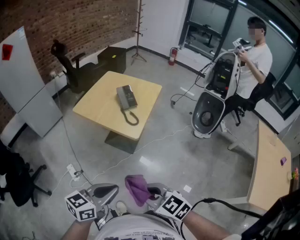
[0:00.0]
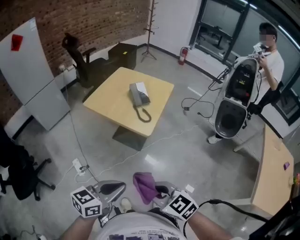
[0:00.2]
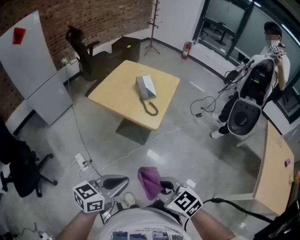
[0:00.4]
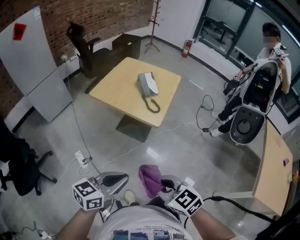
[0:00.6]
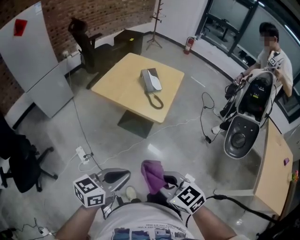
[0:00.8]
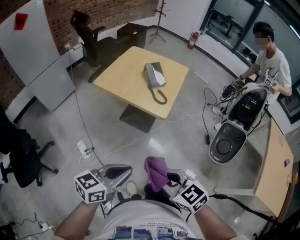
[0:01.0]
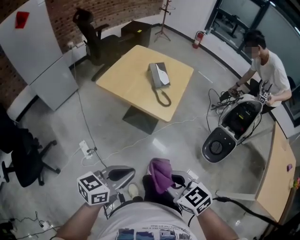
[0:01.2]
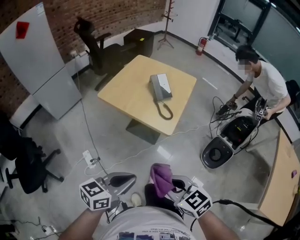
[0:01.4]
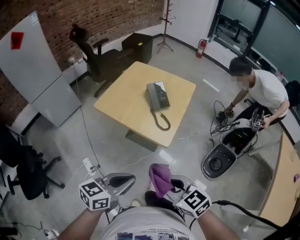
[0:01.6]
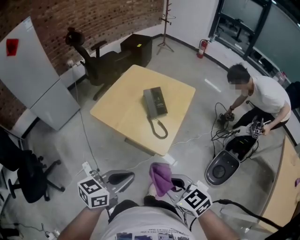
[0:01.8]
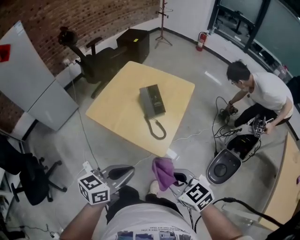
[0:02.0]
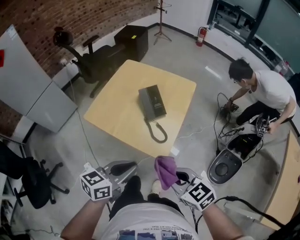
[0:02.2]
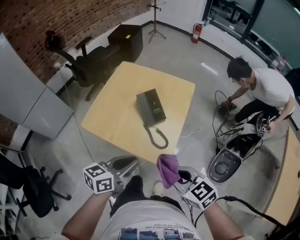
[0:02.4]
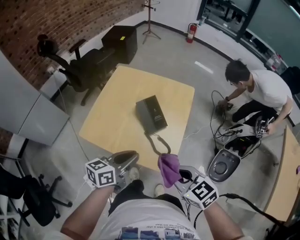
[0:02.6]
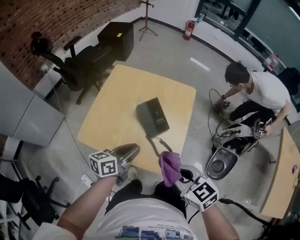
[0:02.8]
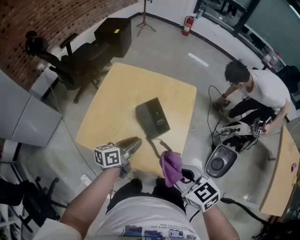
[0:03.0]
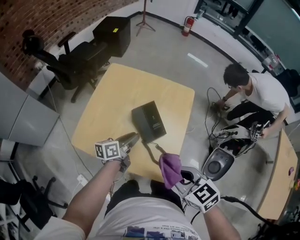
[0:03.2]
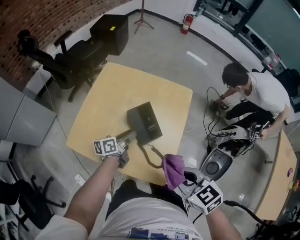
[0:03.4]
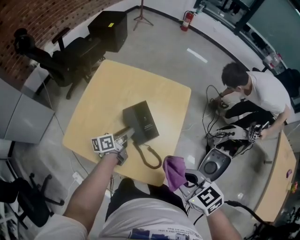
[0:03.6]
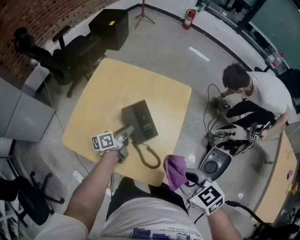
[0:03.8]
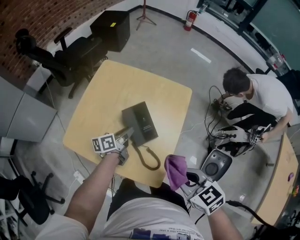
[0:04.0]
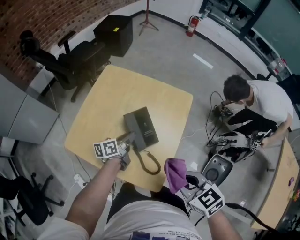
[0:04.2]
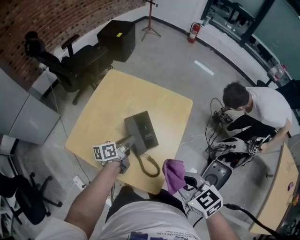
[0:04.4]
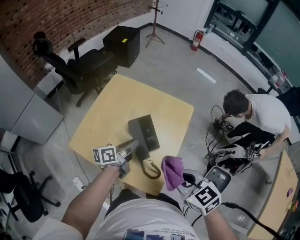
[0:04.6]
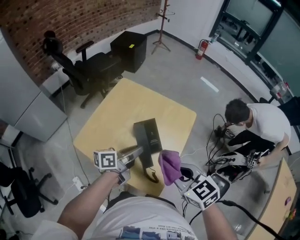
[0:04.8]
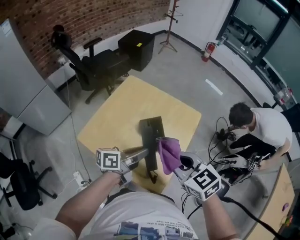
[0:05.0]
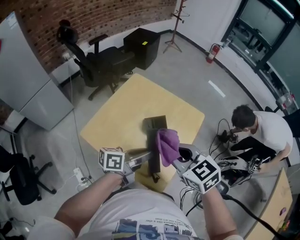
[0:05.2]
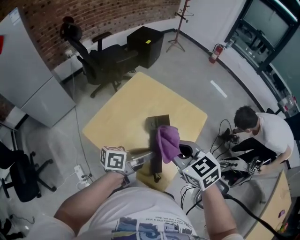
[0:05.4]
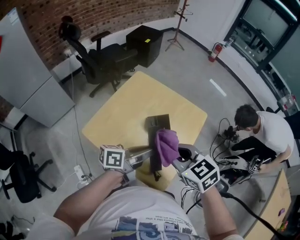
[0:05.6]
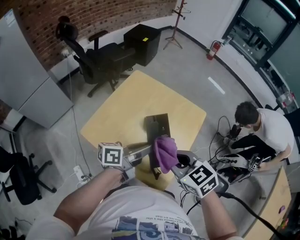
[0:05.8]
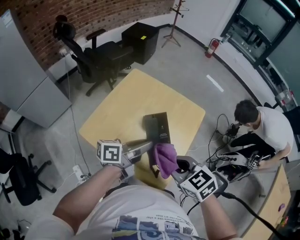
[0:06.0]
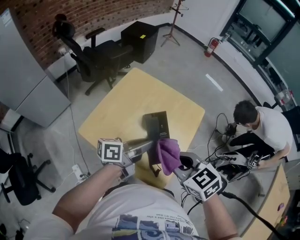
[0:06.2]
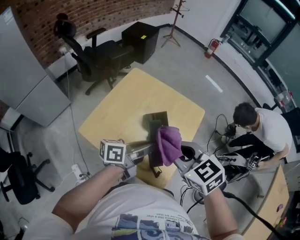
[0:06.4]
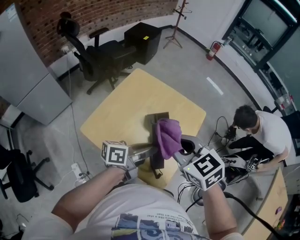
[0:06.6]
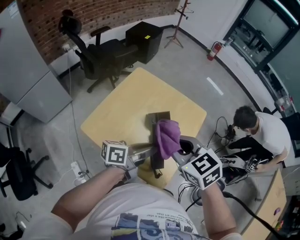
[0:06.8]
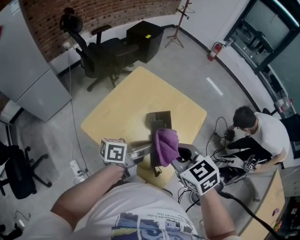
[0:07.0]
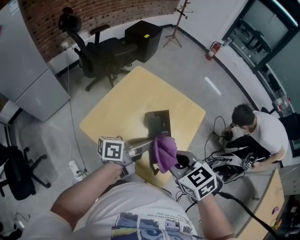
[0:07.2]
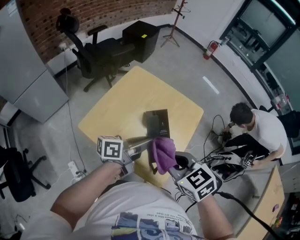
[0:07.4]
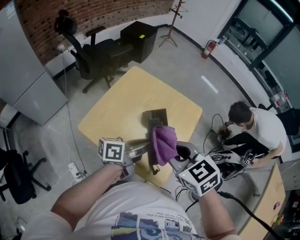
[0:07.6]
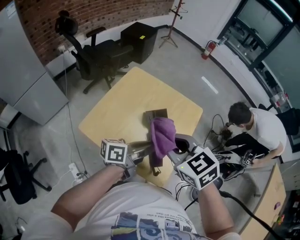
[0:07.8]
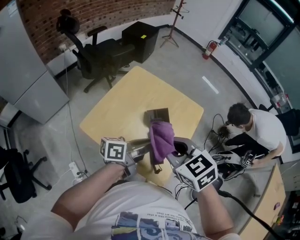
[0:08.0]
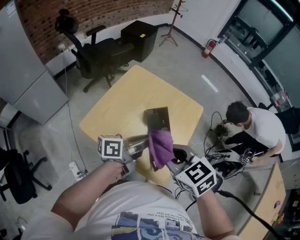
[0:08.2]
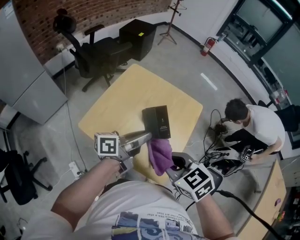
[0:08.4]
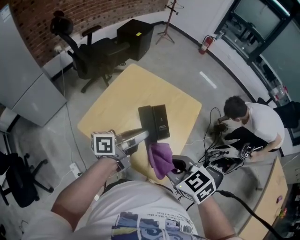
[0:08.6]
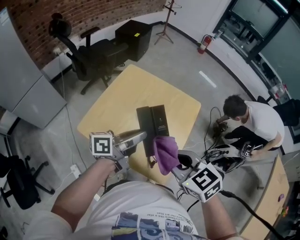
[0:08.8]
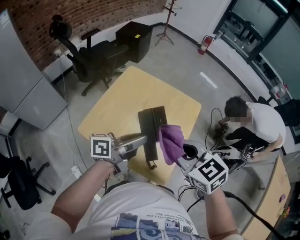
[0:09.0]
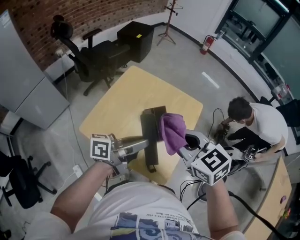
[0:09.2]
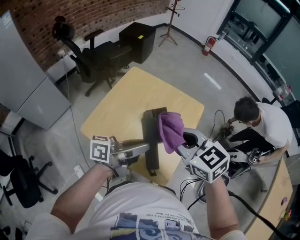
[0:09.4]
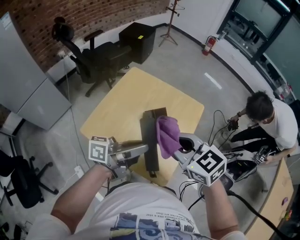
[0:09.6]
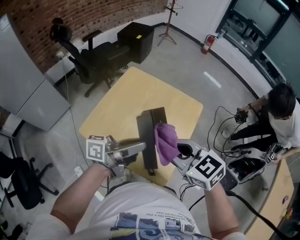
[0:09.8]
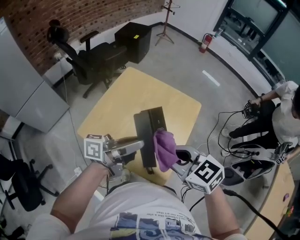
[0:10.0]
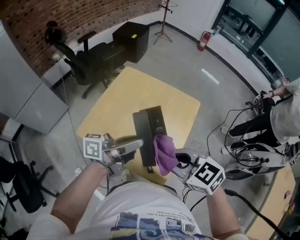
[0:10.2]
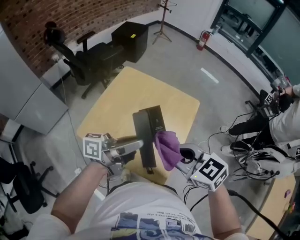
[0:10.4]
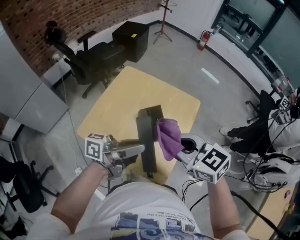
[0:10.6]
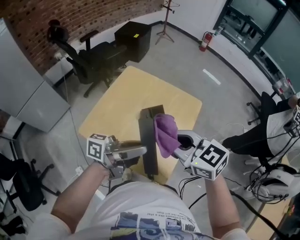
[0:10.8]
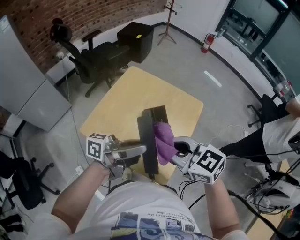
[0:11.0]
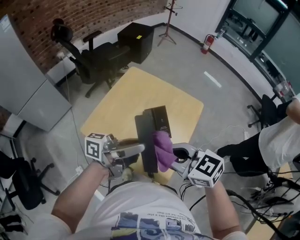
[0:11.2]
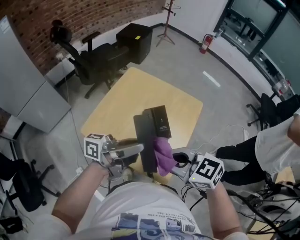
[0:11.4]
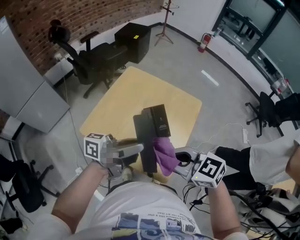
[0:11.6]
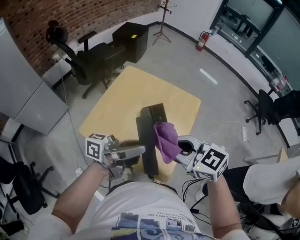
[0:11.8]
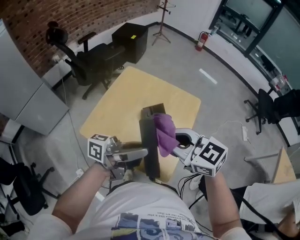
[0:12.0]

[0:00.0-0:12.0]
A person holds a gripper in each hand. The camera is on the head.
0:00.0 to 0:01.6: The left gripper shifts roughly 10 cm forward and to the left, while the right gripper shifts about 10 cm forward.
0:01.6 to 0:03.0: The right gripper moves forward, some 25 cm. Meanwhile the left gripper shifts some 35 cm forward, and swivels some 20 degrees.
0:03.0 to 0:04.4: The right gripper heads to the right, covering approximately 5 cm, while the left gripper is displaced forward by roughly 10 cm.
0:04.4 to 0:06.0: The right gripper heads to the left, covering roughly 5 cm, while the left gripper shifts about 15 cm upward and backward.
0:06.0 to 0:07.6: The right gripper goes up and down, about 5 cm each way, reversing 2 times.
0:07.6 to 0:09.0: The right gripper travels backward and back again, some 5 cm each way.
0:09.0 to 0:10.4: There are only small adjustments of the grippers.
0:10.4 to 0:12.0: The right gripper ends up approximately 5 cm from where it was.

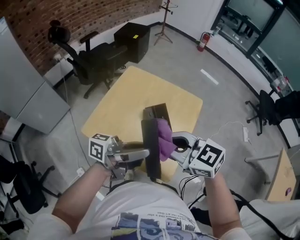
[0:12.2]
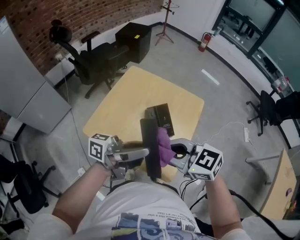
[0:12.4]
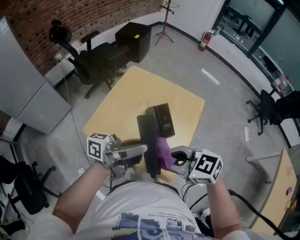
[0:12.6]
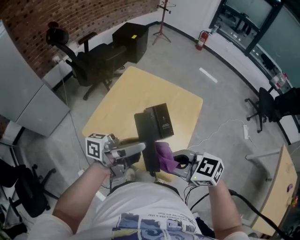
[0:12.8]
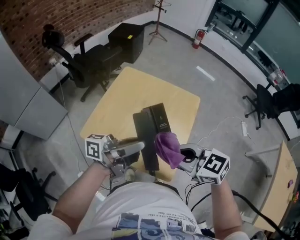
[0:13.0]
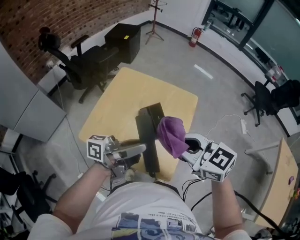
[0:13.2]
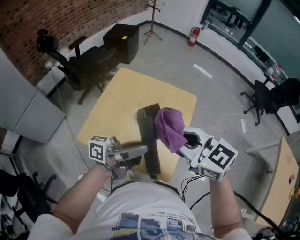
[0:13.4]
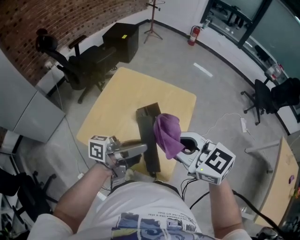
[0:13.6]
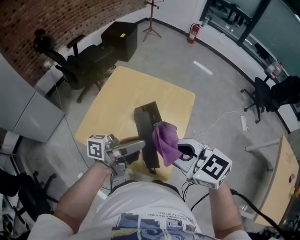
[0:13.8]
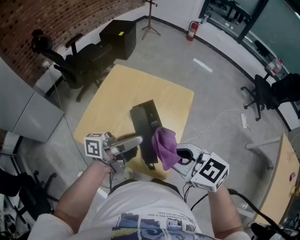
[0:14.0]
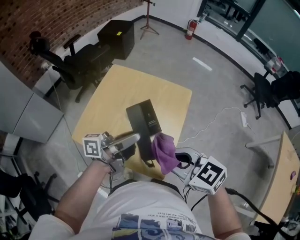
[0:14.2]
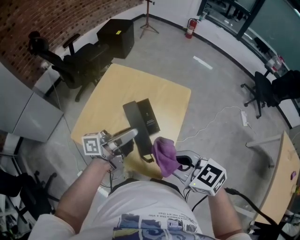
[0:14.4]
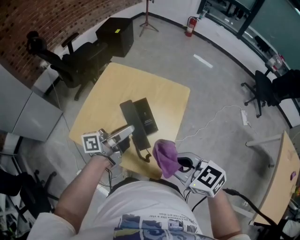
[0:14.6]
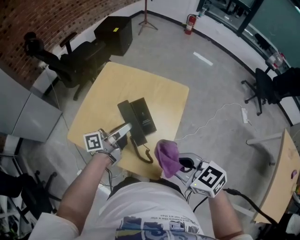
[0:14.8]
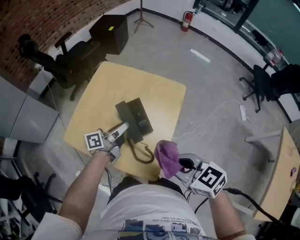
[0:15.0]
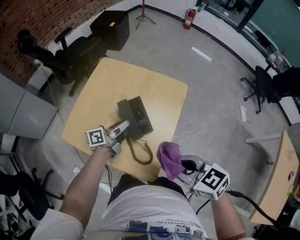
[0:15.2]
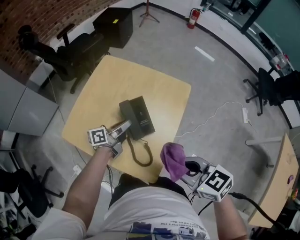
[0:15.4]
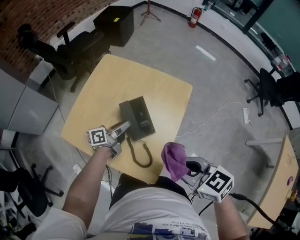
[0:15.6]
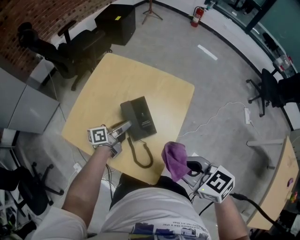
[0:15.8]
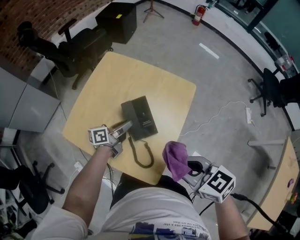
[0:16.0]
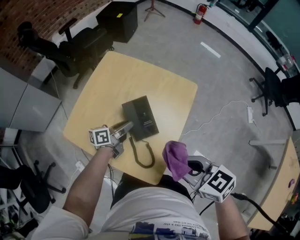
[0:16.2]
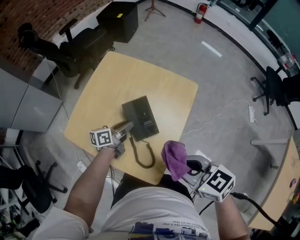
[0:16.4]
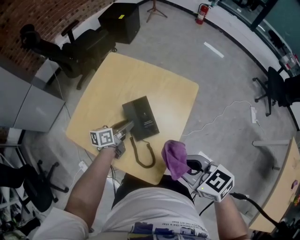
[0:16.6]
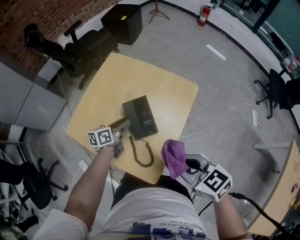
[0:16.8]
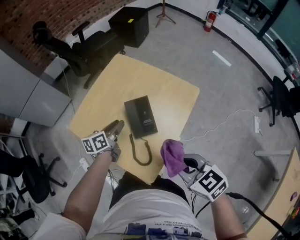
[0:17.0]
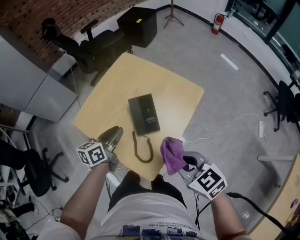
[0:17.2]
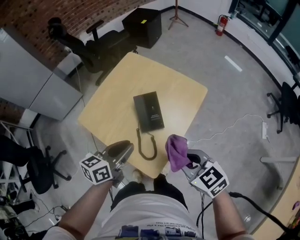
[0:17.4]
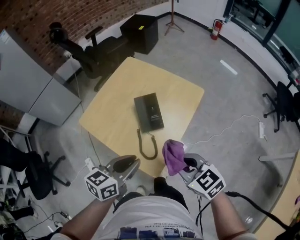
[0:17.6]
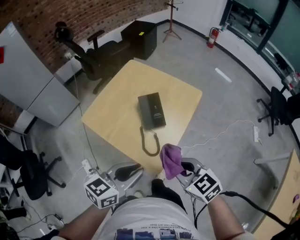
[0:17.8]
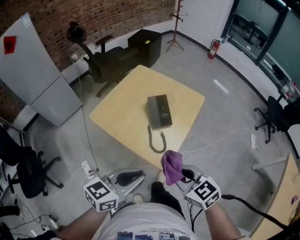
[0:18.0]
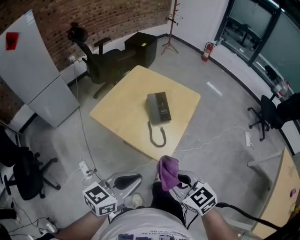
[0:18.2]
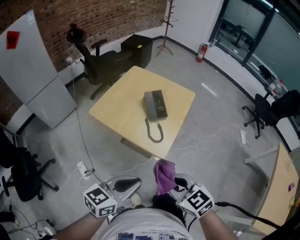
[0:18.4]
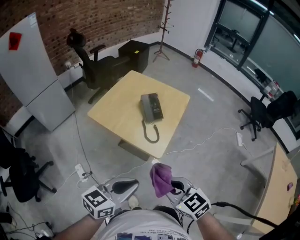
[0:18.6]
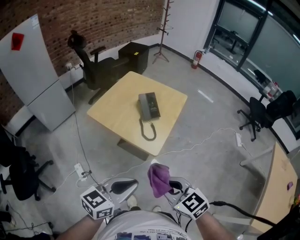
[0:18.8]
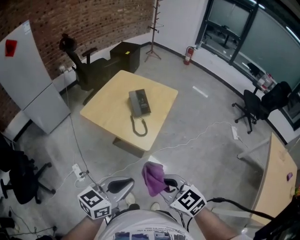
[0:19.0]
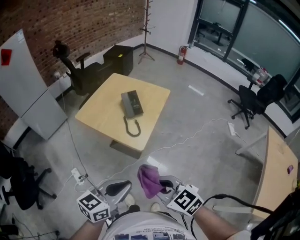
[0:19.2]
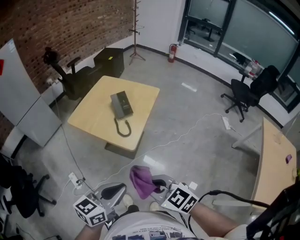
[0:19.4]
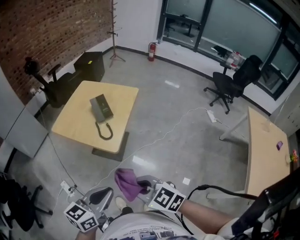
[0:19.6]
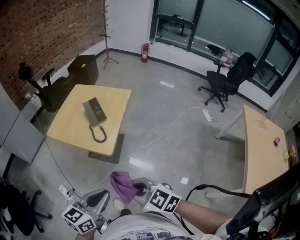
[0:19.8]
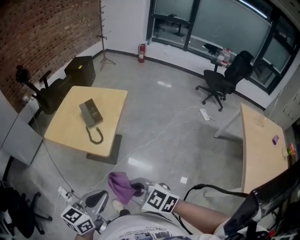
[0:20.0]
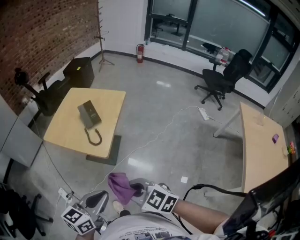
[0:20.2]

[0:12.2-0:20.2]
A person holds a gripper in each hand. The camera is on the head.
0:12.2 to 0:13.8: The right gripper travels downward and back again, roughly 5 cm each way. The left gripper changes place by about 5 cm.
0:13.8 to 0:15.4: The right gripper moves some 15 cm; the left gripper shifts some 20 cm downward, and swivels approximately 30 degrees.
0:15.4 to 0:17.0: The left gripper moves to the left, approximately 5 cm, and turns by some 30 degrees.
0:17.0 to 0:18.6: The left gripper is displaced backward and upward by approximately 40 cm, changes its angle by some 40 degrees, and closes up; the right gripper travels backward and to the left by roughly 25 cm.
0:18.6 to 0:20.2: The left gripper travels to the right and backward by approximately 10 cm. Meanwhile the right gripper travels backward and to the right by roughly 10 cm.

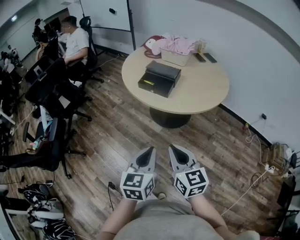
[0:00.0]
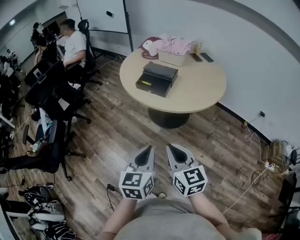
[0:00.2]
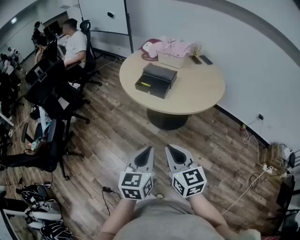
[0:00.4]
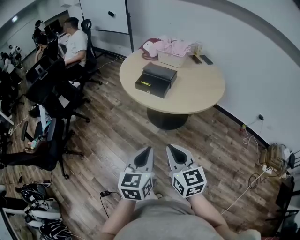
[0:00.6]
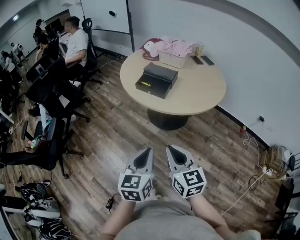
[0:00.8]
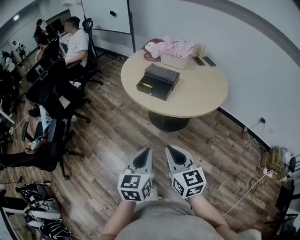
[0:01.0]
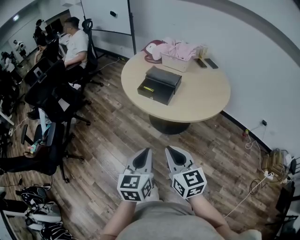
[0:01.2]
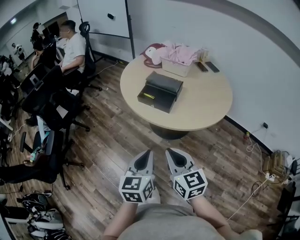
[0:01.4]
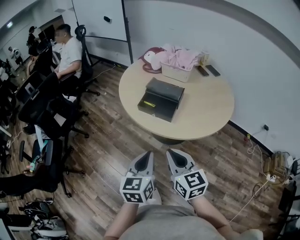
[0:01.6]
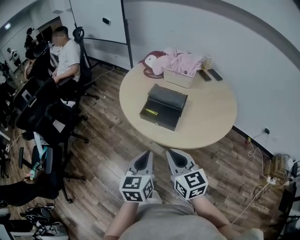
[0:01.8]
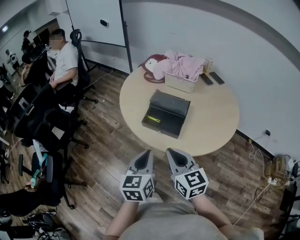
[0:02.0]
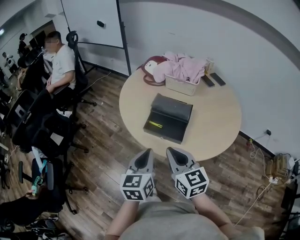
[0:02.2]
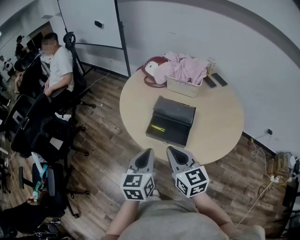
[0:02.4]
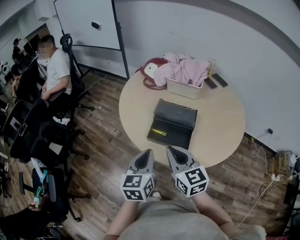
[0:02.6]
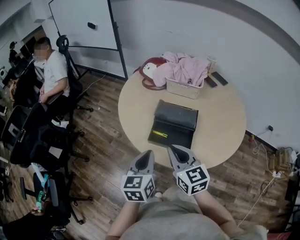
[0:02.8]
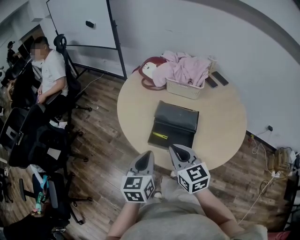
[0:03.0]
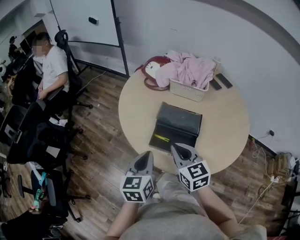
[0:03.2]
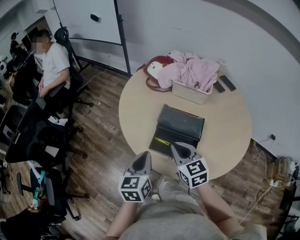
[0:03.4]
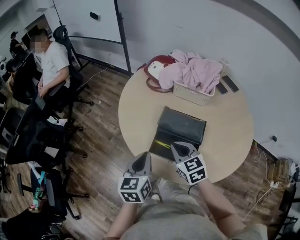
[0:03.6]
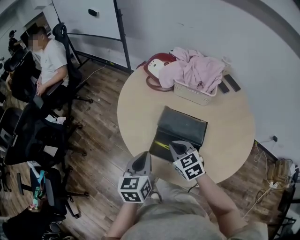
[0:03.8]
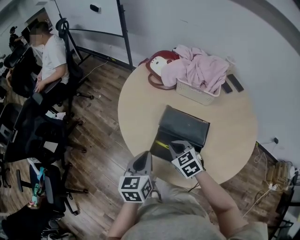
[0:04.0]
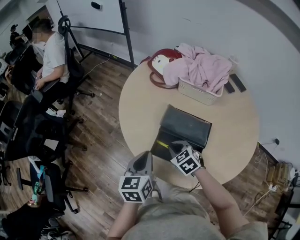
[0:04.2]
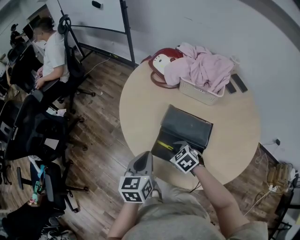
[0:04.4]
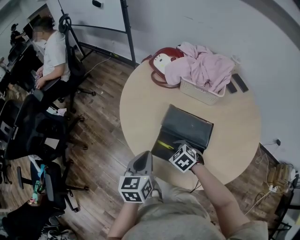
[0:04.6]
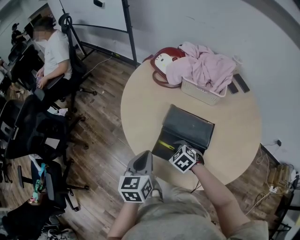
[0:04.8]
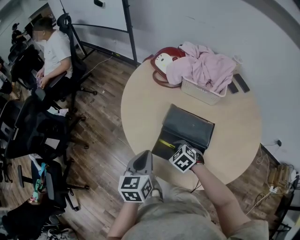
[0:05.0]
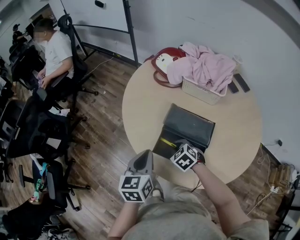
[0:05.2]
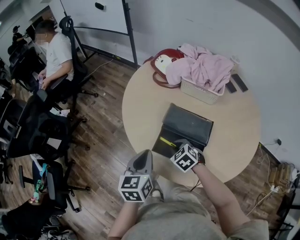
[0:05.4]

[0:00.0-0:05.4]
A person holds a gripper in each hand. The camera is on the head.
0:00.0 to 0:01.4: The two grippers go approximately 10 cm forward.
0:01.4 to 0:02.8: Both grippers travel together forward, approximately 30 cm.
0:02.8 to 0:04.0: The left gripper travels forward and downward by roughly 10 cm. The right gripper moves downward and forward, approximately 20 cm, and swivels about 30 degrees.
0:04.0 to 0:05.4: The right gripper heads downward, covering approximately 5 cm.
